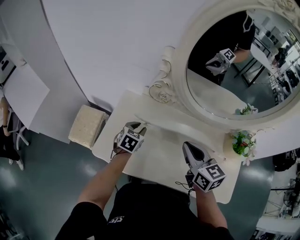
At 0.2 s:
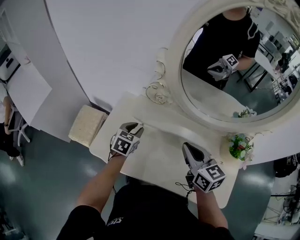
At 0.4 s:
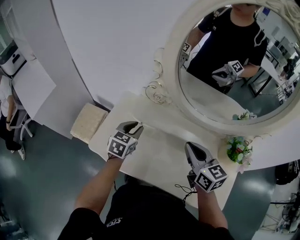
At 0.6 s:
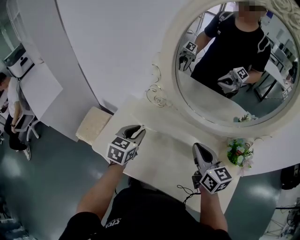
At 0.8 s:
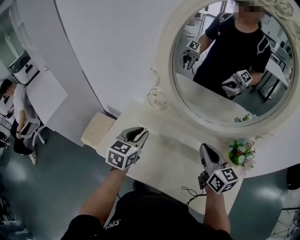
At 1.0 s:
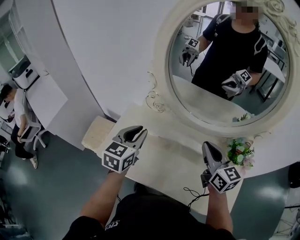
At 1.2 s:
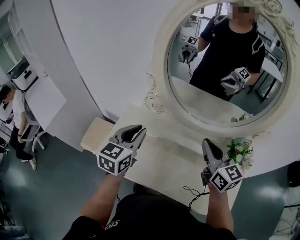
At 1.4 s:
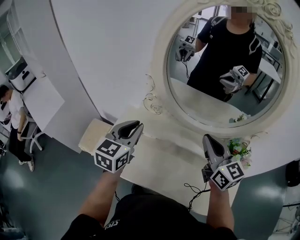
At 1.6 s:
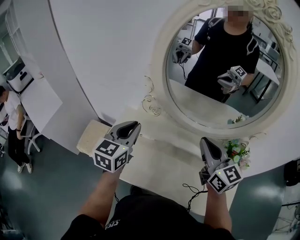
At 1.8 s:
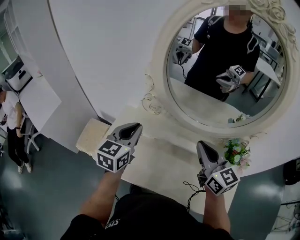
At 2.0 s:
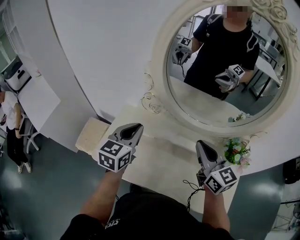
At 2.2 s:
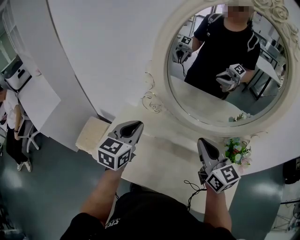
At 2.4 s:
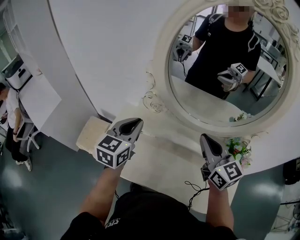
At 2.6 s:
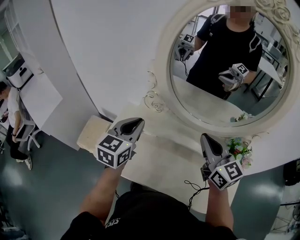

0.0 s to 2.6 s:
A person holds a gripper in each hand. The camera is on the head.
0.0 to 1.2 s: The left gripper shifts approximately 25 cm upward, and changes its angle by about 30 degrees; the right gripper heads to the right and upward, covering some 15 cm.
1.2 to 2.6 s: The grippers stay close to where they were, moving slightly.

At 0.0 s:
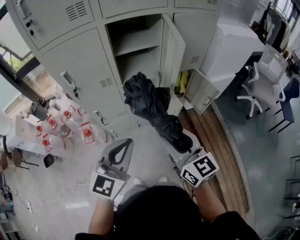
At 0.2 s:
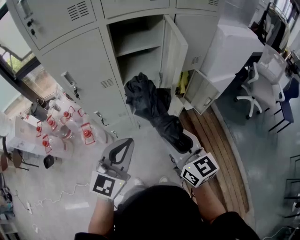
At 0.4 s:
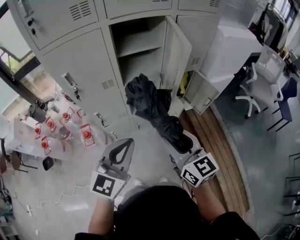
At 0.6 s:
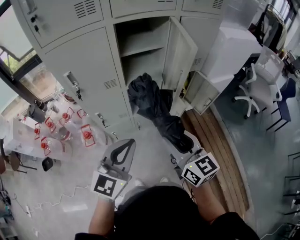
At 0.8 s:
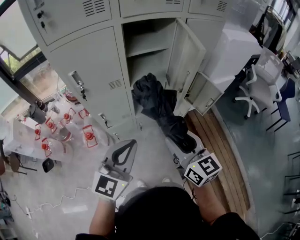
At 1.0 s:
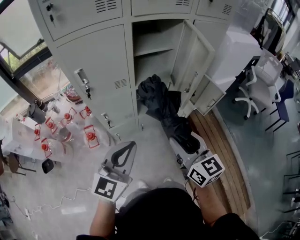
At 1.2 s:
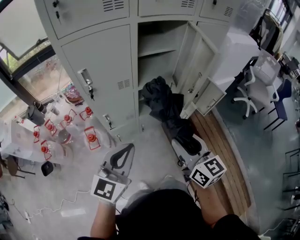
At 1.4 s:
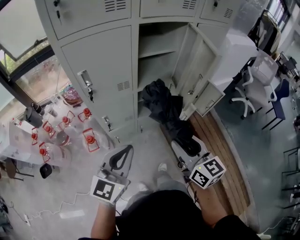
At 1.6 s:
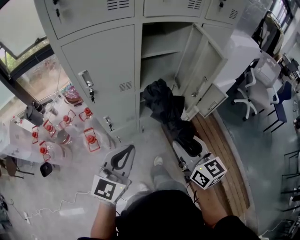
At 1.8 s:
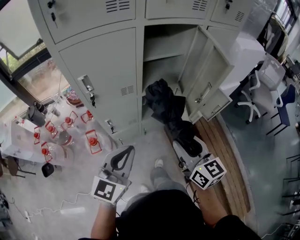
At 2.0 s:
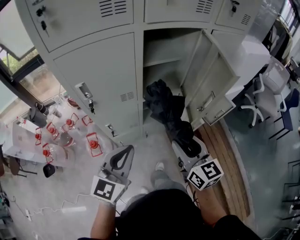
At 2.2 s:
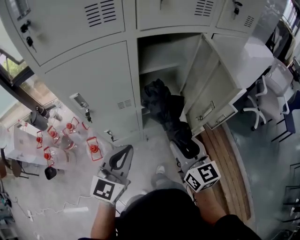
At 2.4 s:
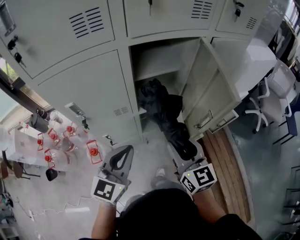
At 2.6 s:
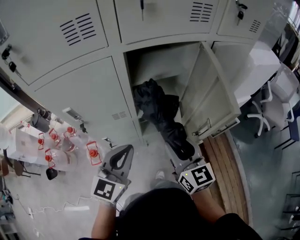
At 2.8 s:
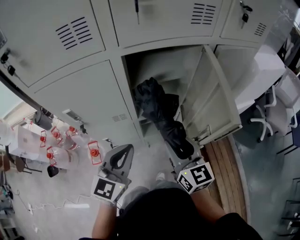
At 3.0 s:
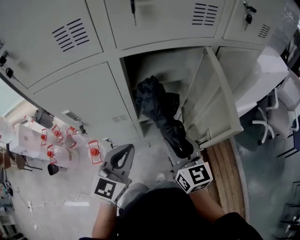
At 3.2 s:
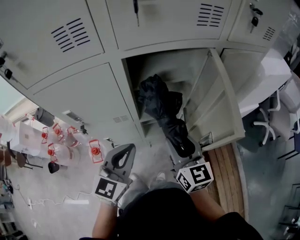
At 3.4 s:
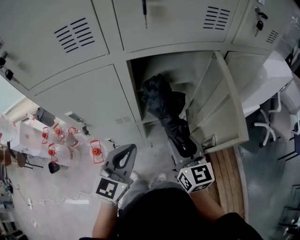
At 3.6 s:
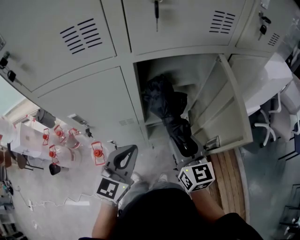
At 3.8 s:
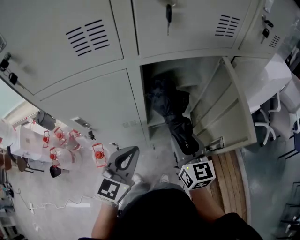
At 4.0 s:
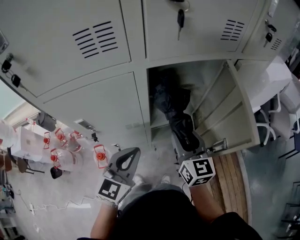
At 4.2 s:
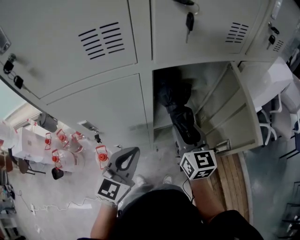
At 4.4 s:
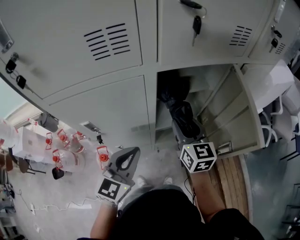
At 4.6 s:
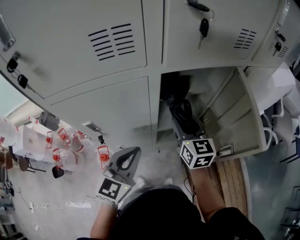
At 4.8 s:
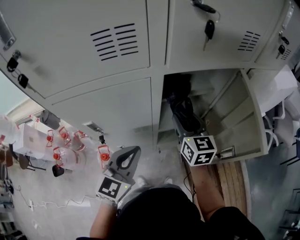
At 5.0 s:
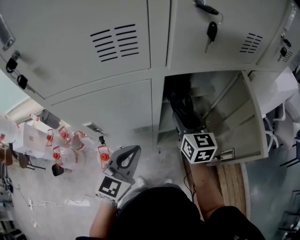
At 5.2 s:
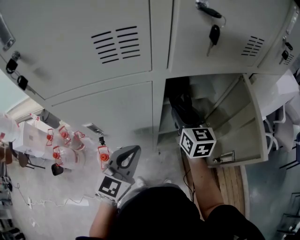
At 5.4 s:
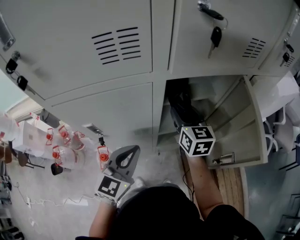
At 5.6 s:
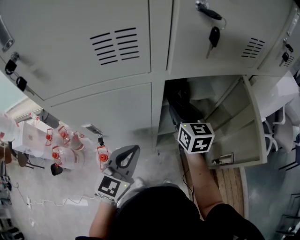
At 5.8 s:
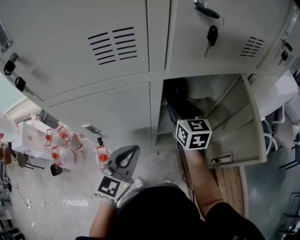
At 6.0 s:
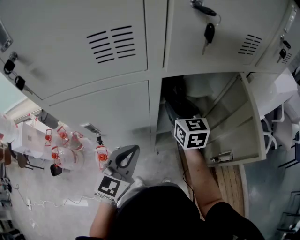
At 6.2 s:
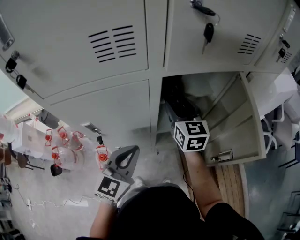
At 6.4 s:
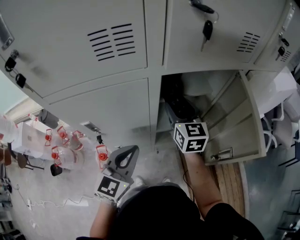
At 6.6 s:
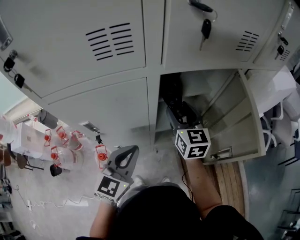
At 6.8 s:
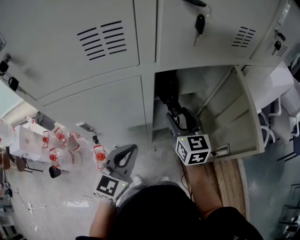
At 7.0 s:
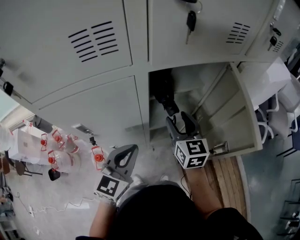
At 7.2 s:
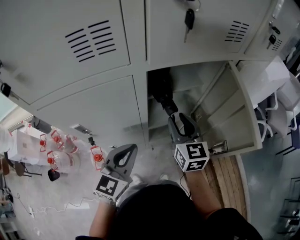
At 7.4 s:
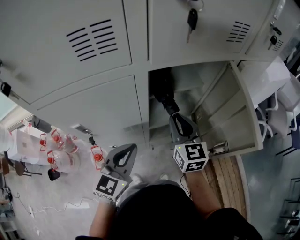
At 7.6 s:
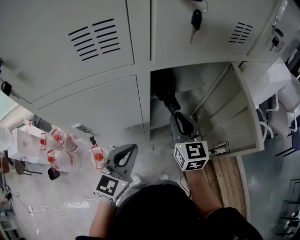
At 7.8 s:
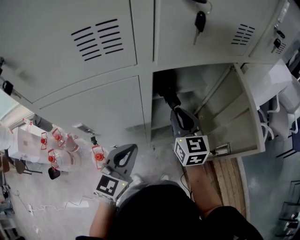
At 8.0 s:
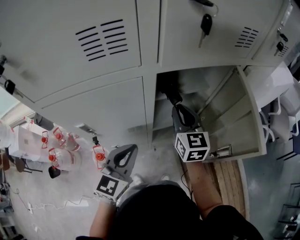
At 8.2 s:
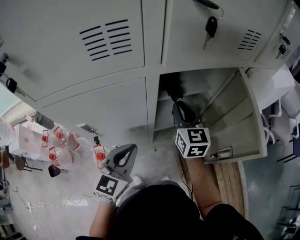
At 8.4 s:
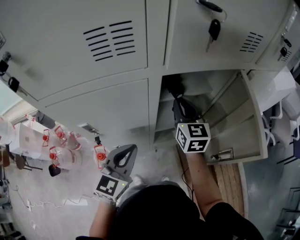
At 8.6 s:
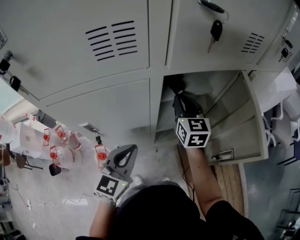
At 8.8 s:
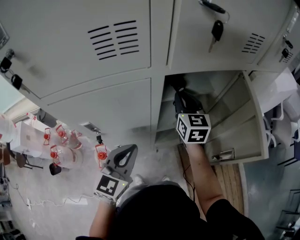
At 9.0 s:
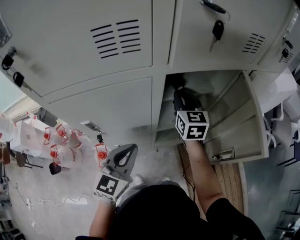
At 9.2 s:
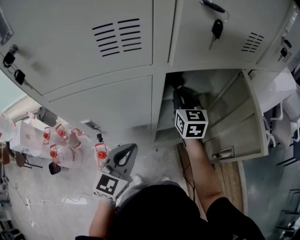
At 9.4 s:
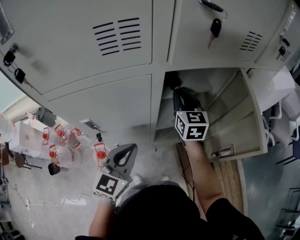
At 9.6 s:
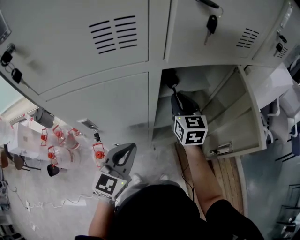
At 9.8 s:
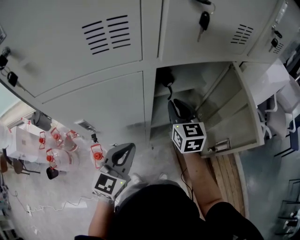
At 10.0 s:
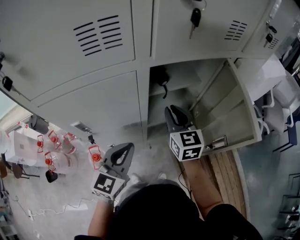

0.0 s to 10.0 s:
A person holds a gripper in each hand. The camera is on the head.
0.0 to 1.4 s: The grippers both shift to the left by roughly 15 cm.
1.4 to 2.8 s: The two grippers go approximately 20 cm forward.
2.8 to 4.2 s: The right gripper travels forward by about 10 cm. Meanwhile the left gripper is displaced to the left by some 5 cm.
4.2 to 5.8 s: The right gripper moves forward and to the left, some 10 cm.
5.8 to 7.2 s: The right gripper moves backward, about 10 cm.
7.2 to 8.6 s: The right gripper heads forward, covering approximately 10 cm, and closes.
8.6 to 10.0 s: The right gripper travels backward by some 5 cm.

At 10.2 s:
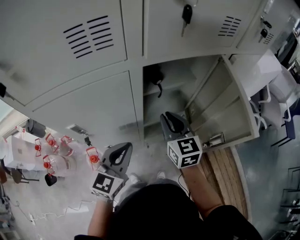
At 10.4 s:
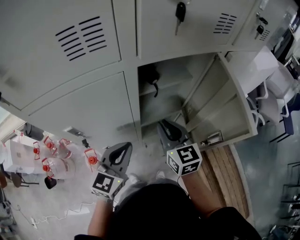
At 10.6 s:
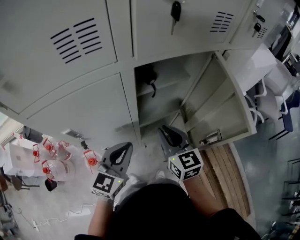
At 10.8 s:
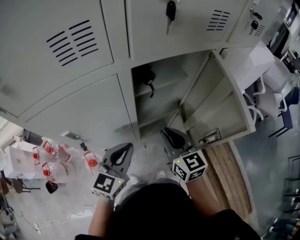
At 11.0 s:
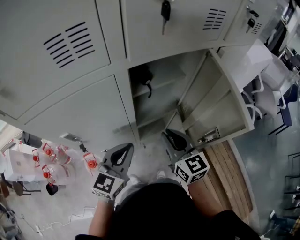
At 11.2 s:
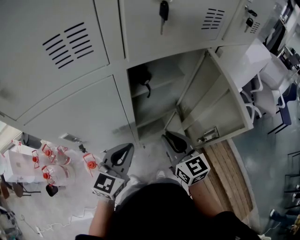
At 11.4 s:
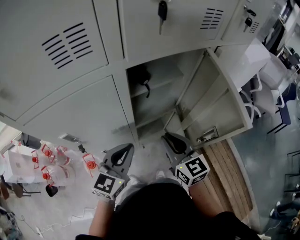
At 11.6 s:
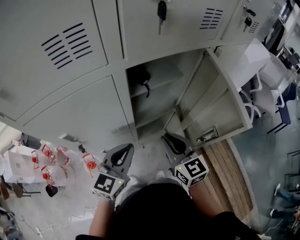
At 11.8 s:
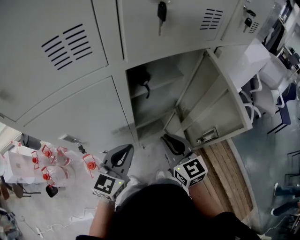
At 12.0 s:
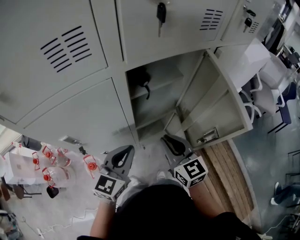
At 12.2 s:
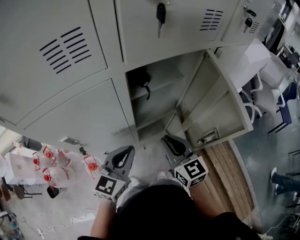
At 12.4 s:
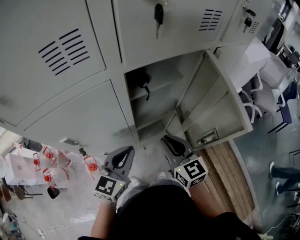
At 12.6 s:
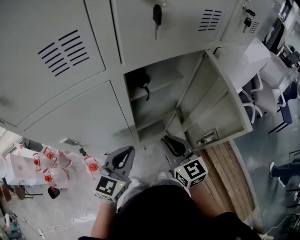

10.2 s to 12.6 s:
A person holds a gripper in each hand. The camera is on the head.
10.2 to 11.4 s: The right gripper travels backward by about 10 cm.
11.4 to 12.6 s: The two grippers keep their place.

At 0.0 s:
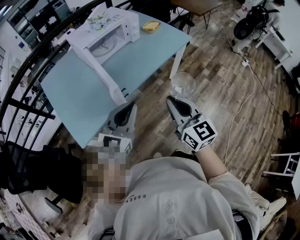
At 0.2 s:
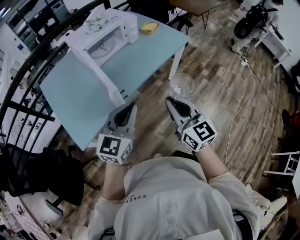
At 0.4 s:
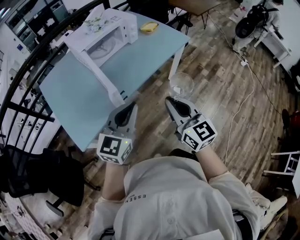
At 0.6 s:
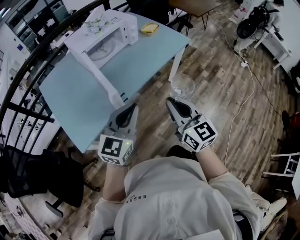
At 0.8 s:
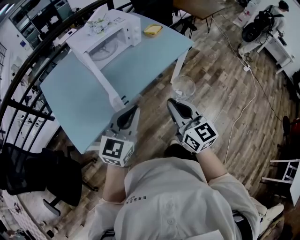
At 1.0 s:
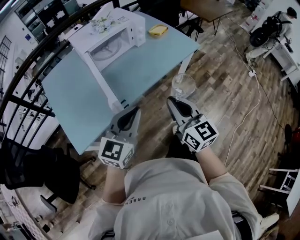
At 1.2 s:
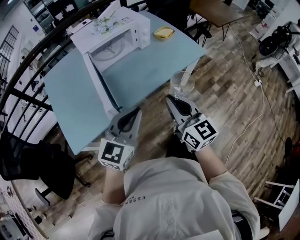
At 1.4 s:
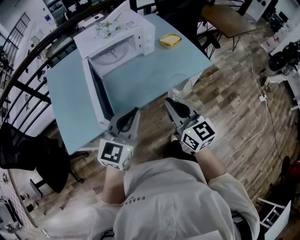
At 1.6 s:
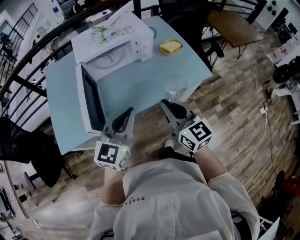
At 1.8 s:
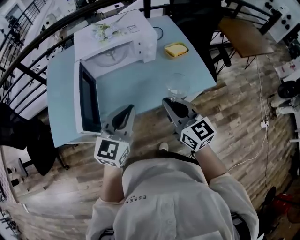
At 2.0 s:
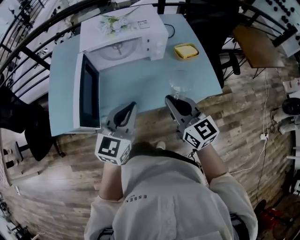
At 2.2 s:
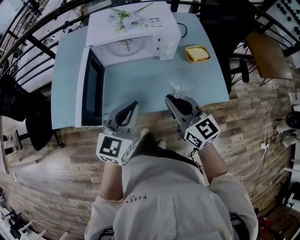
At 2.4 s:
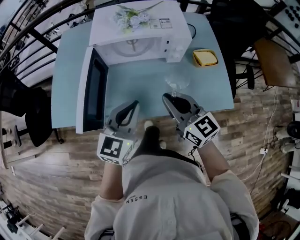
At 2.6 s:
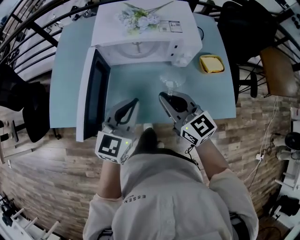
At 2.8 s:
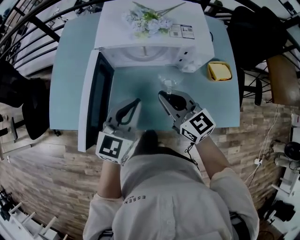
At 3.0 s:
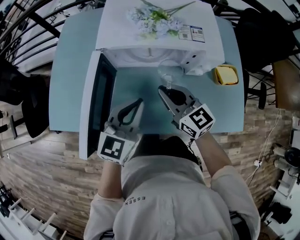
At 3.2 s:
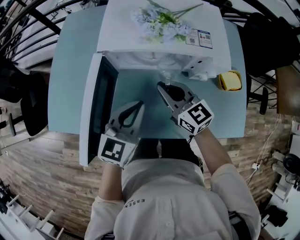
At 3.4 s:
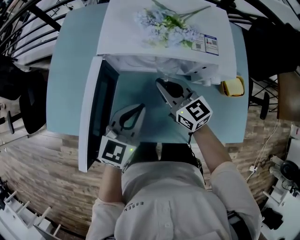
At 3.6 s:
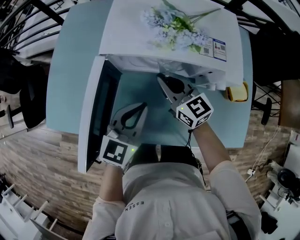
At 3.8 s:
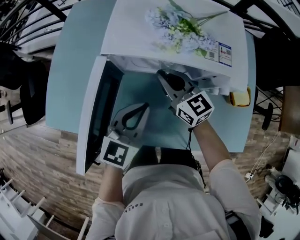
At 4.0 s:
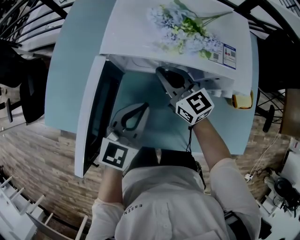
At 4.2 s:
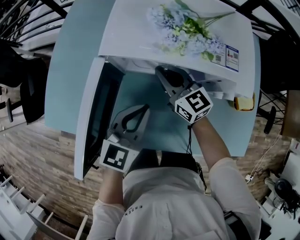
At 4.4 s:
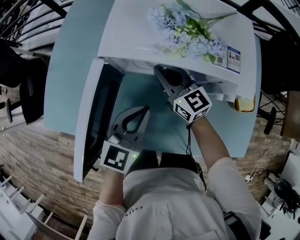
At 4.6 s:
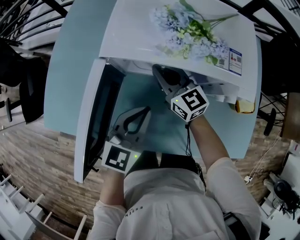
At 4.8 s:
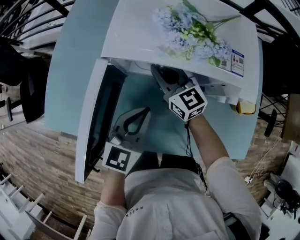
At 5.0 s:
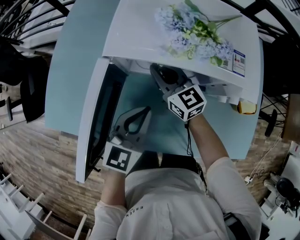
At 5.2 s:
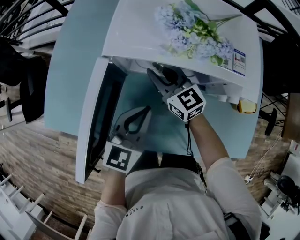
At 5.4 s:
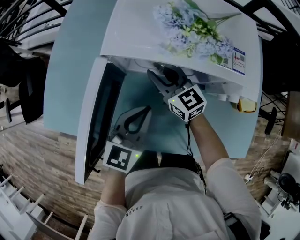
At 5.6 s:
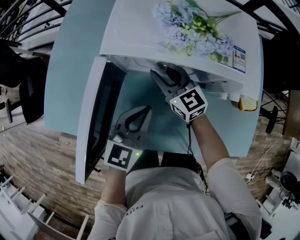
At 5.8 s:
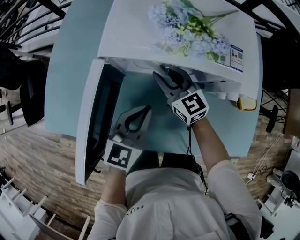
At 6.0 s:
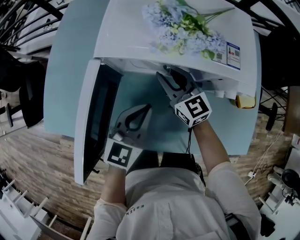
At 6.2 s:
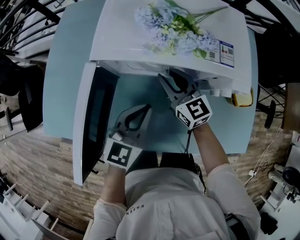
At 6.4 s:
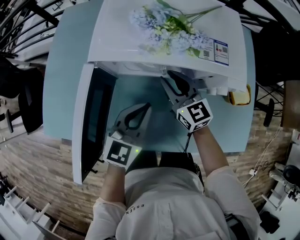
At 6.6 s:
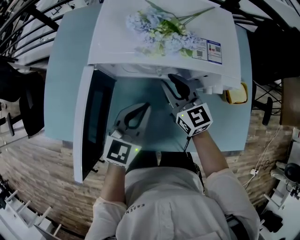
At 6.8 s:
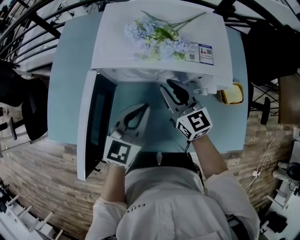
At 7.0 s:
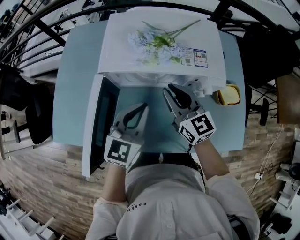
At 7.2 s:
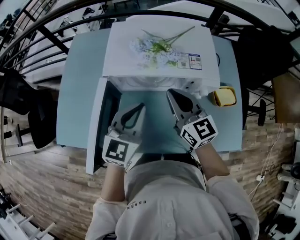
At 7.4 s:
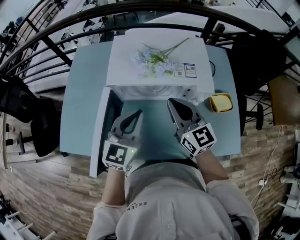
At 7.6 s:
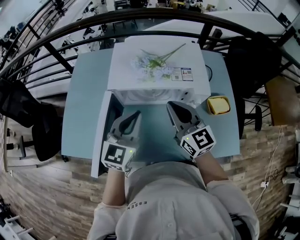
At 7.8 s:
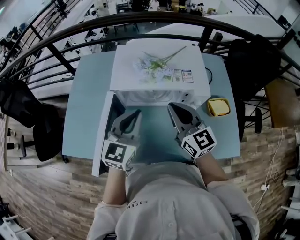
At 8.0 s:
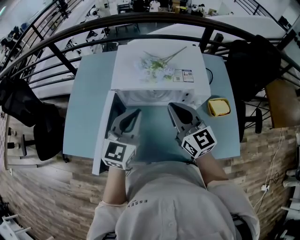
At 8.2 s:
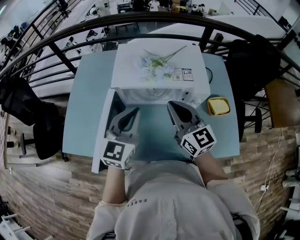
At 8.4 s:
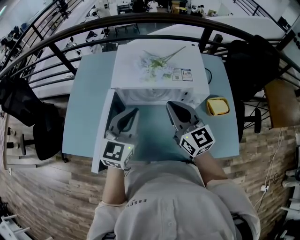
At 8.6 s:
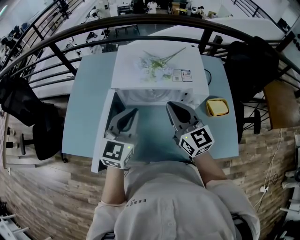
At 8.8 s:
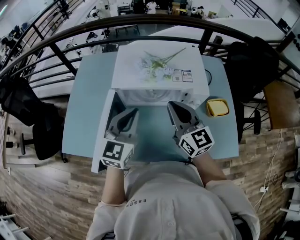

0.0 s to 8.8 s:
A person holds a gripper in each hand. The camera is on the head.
0.0 to 1.4 s: The left gripper heads forward and to the right, covering roughly 15 cm. Meanwhile the right gripper shifts about 20 cm forward.
1.4 to 3.0 s: The left gripper moves approximately 30 cm, and changes its angle by about 30 degrees; the right gripper ends up approximately 35 cm from where it was, and swivels approximately 40 degrees.
3.0 to 4.4 s: The left gripper moves forward and downward, some 10 cm; the right gripper travels forward and downward by about 15 cm.
4.4 to 5.8 s: The grippers move only a little.
5.8 to 7.4 s: The right gripper travels upward, backward and to the right by some 20 cm, and closes its fingers. The left gripper shifts approximately 15 cm upward.
7.4 to 8.8 s: There are only small adjustments of the grippers.
